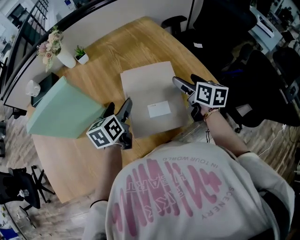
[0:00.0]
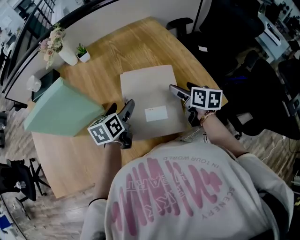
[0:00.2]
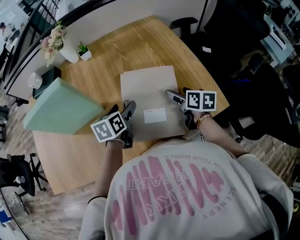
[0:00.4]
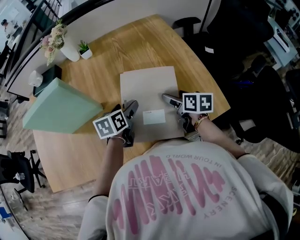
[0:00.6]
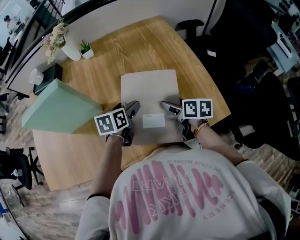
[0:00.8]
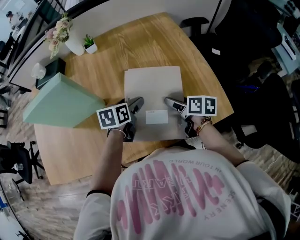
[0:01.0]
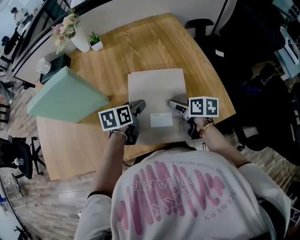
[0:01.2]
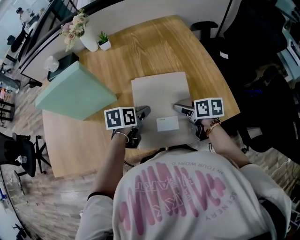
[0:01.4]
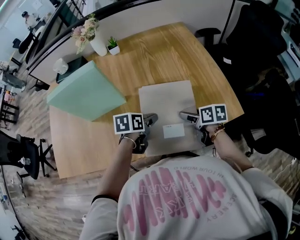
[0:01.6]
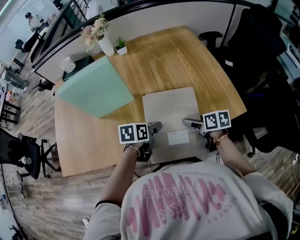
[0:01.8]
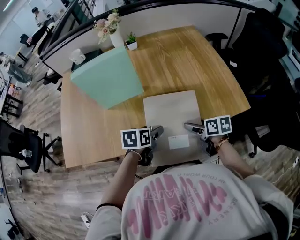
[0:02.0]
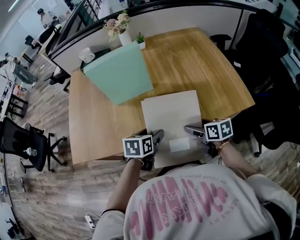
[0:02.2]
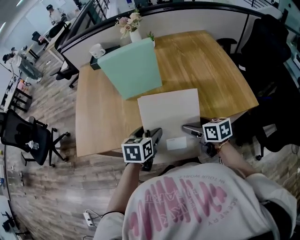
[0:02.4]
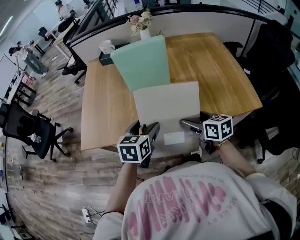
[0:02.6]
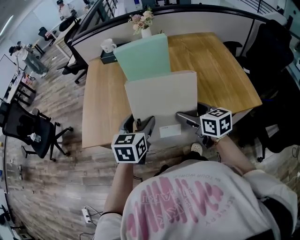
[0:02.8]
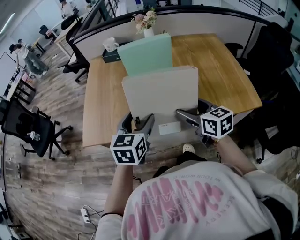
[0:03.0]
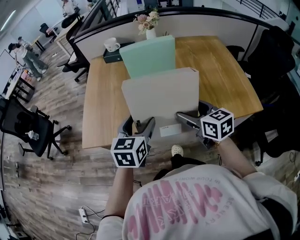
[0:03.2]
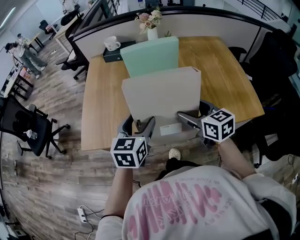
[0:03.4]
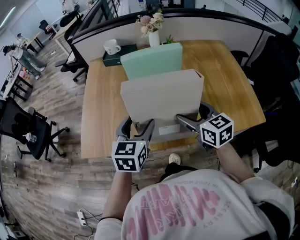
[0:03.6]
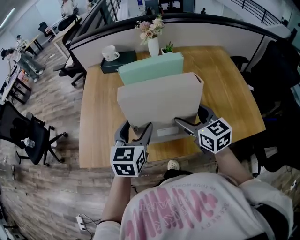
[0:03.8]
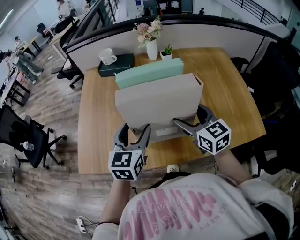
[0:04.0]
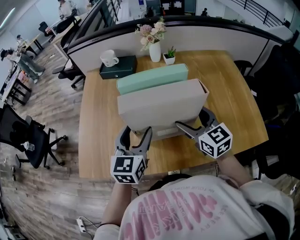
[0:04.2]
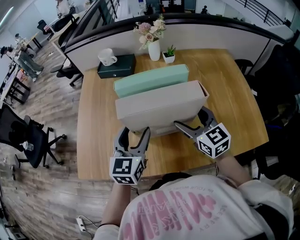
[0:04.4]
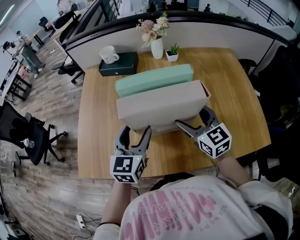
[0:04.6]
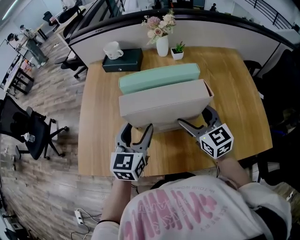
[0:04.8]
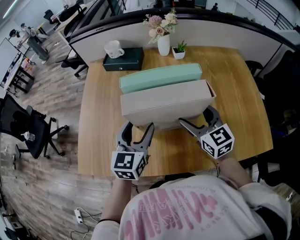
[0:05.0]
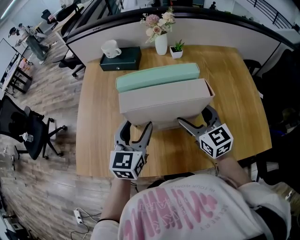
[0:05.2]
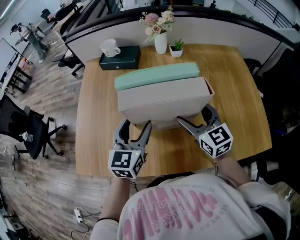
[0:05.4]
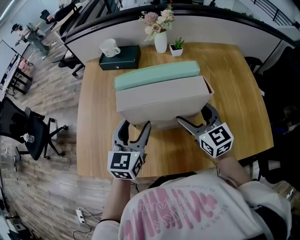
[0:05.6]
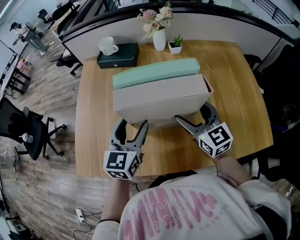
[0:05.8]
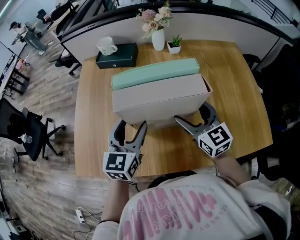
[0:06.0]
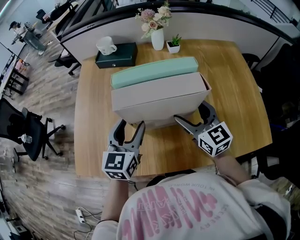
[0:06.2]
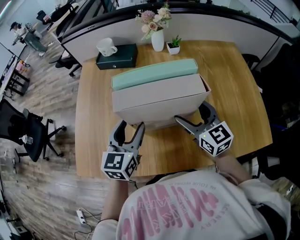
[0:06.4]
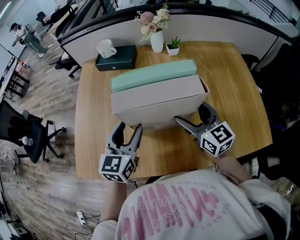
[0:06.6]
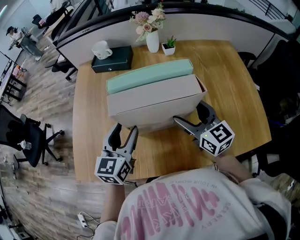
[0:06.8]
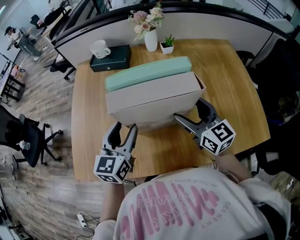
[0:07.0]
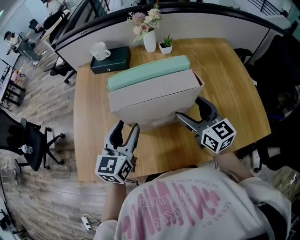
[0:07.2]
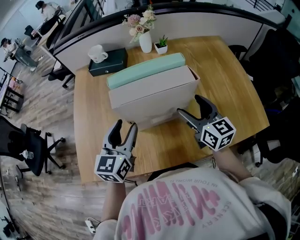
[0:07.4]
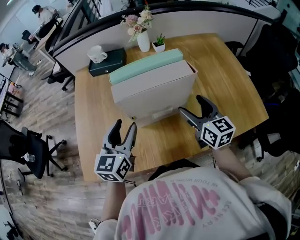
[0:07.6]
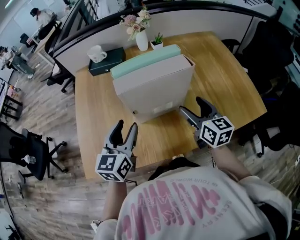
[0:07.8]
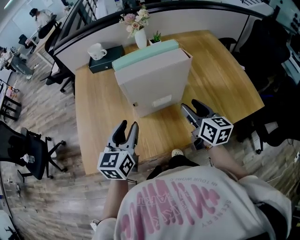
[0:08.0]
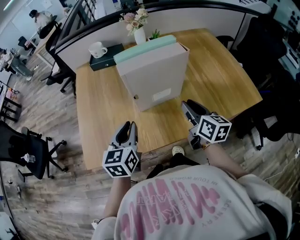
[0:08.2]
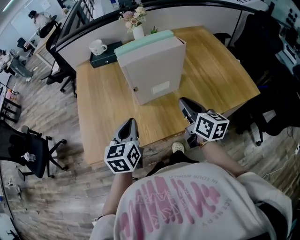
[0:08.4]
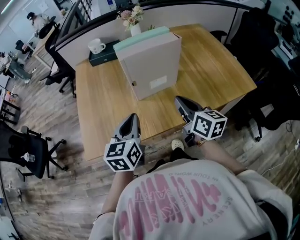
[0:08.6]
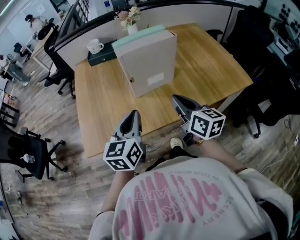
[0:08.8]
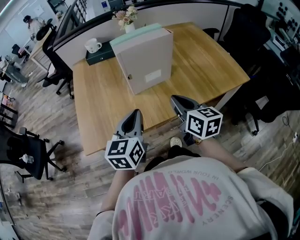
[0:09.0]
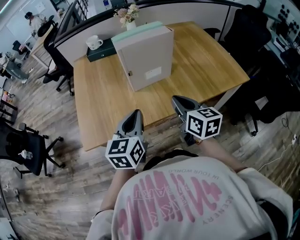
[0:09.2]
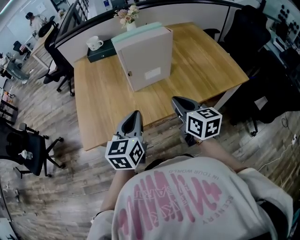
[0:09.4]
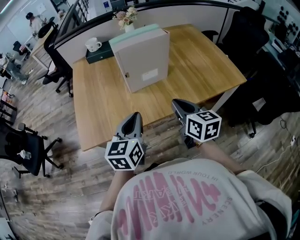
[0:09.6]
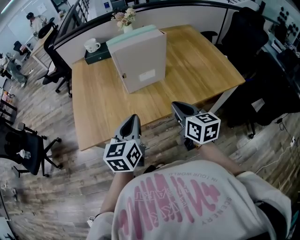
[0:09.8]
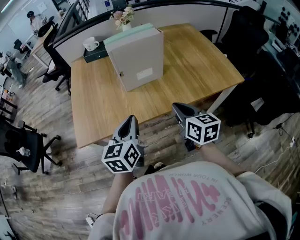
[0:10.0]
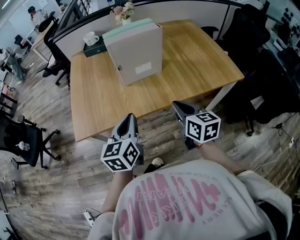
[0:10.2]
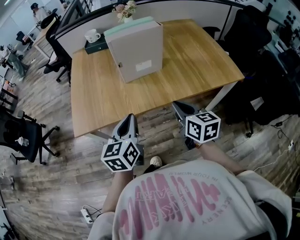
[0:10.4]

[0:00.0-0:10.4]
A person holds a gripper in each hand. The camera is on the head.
0:00.0 to 0:01.4: The left gripper shifts approximately 10 cm downward, and turns by about 20 degrees, while the right gripper moves downward and to the left, some 10 cm, and changes its angle by roughly 30 degrees.
0:01.4 to 0:03.0: The left gripper heads to the left, backward and upward, covering roughly 40 cm, and swivels roughly 40 degrees, while the right gripper goes approximately 35 cm to the left, upward and backward, and changes its angle by roughly 40 degrees.
0:03.0 to 0:04.4: Both grippers move forward, approximately 15 cm.
0:04.4 to 0:07.4: The grippers stay close to where they were, moving slightly.
0:07.4 to 0:09.0: The two grippers go about 20 cm backward. The left gripper closes its fingers. The right gripper closes its fingers.
0:09.0 to 0:10.4: The left gripper is displaced backward by approximately 10 cm. The right gripper moves backward and to the right, some 10 cm.

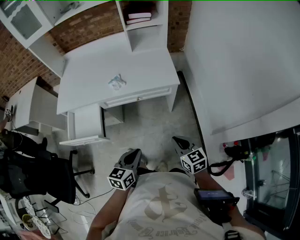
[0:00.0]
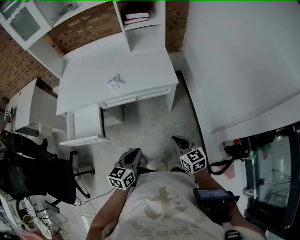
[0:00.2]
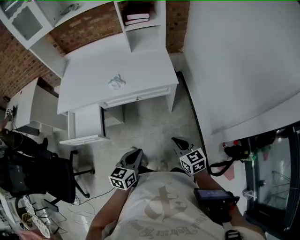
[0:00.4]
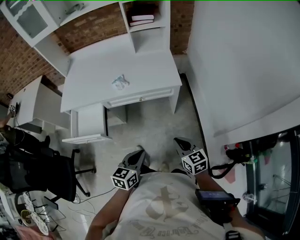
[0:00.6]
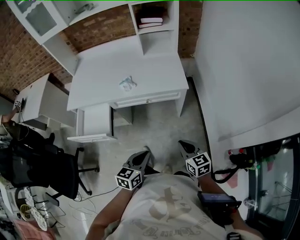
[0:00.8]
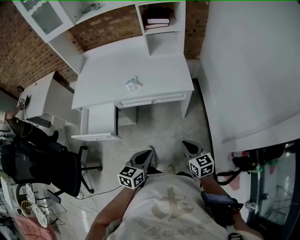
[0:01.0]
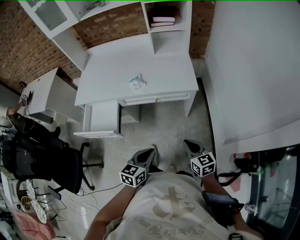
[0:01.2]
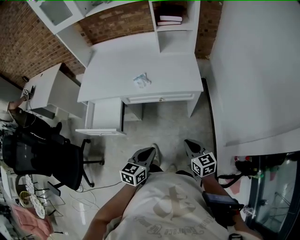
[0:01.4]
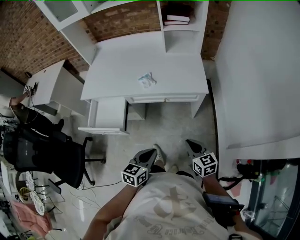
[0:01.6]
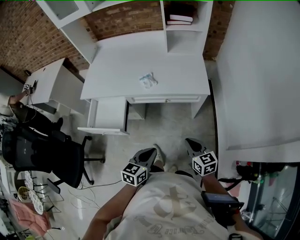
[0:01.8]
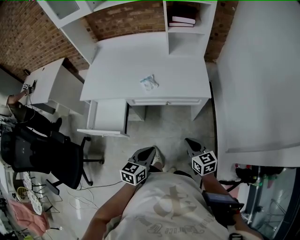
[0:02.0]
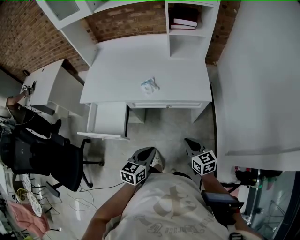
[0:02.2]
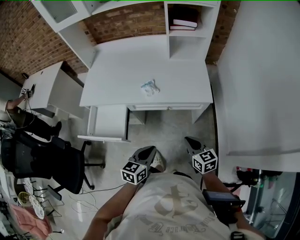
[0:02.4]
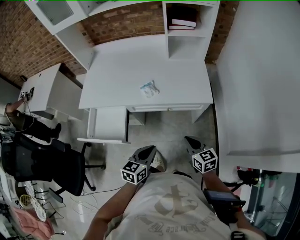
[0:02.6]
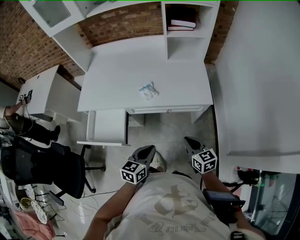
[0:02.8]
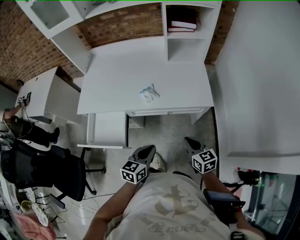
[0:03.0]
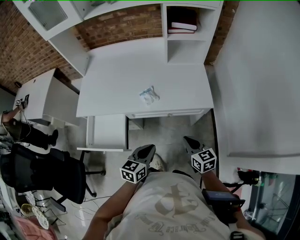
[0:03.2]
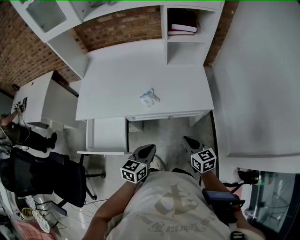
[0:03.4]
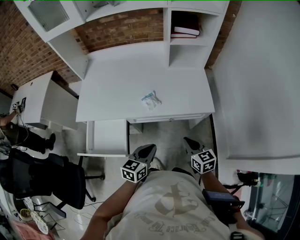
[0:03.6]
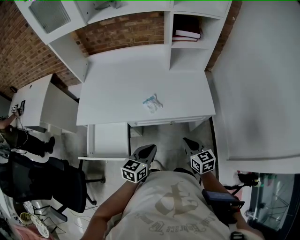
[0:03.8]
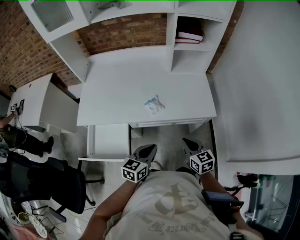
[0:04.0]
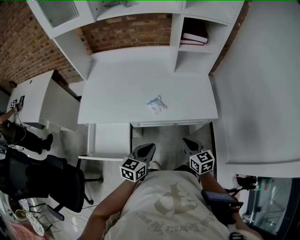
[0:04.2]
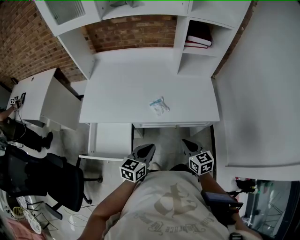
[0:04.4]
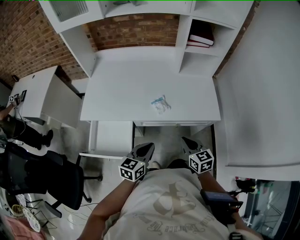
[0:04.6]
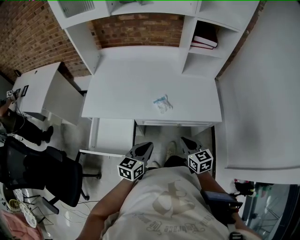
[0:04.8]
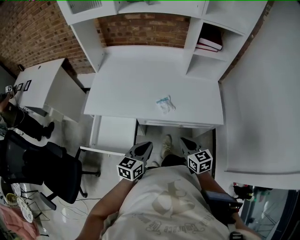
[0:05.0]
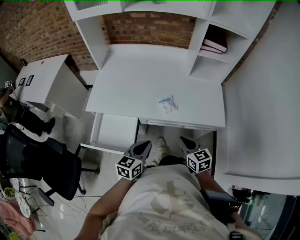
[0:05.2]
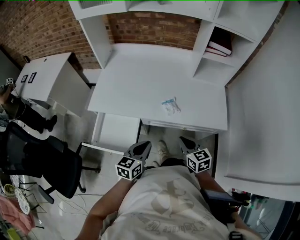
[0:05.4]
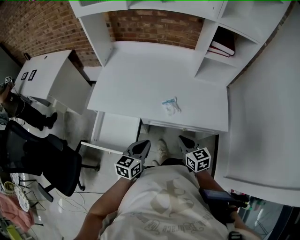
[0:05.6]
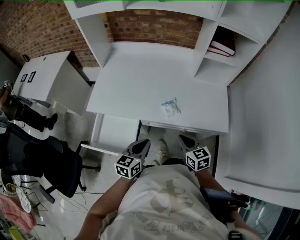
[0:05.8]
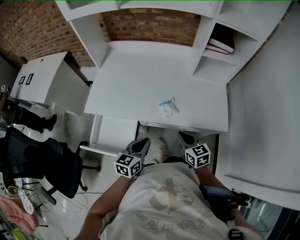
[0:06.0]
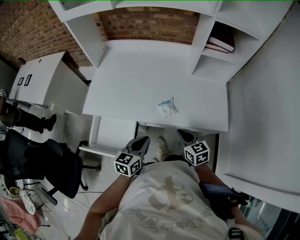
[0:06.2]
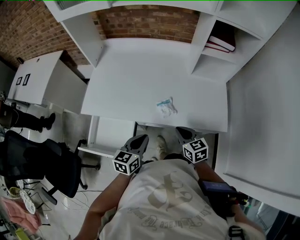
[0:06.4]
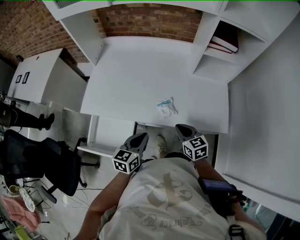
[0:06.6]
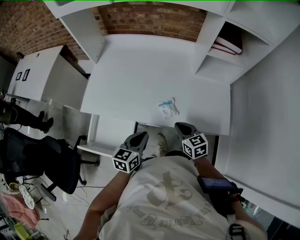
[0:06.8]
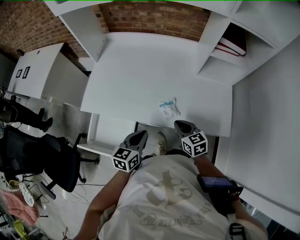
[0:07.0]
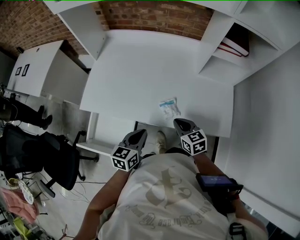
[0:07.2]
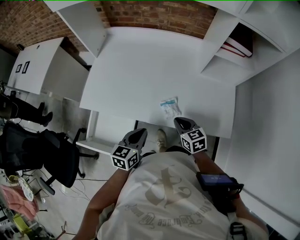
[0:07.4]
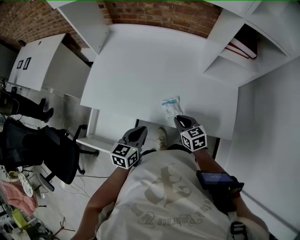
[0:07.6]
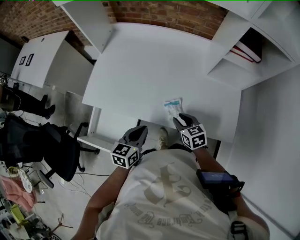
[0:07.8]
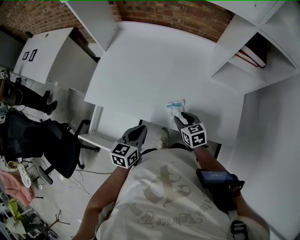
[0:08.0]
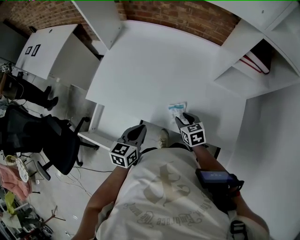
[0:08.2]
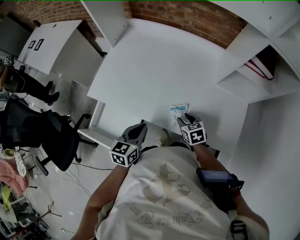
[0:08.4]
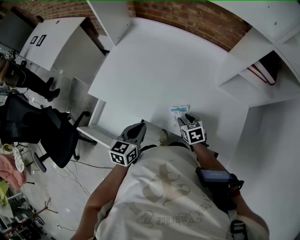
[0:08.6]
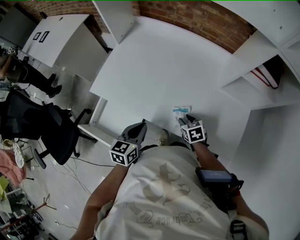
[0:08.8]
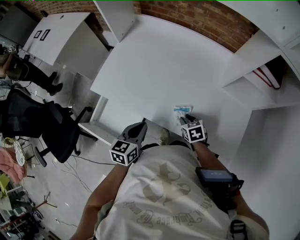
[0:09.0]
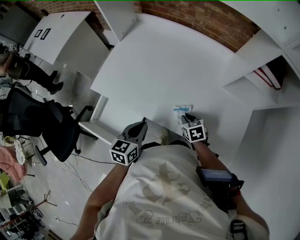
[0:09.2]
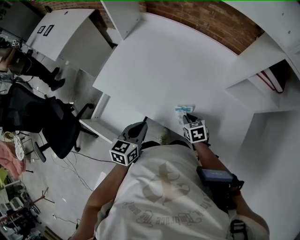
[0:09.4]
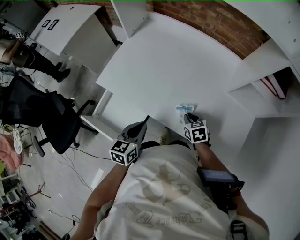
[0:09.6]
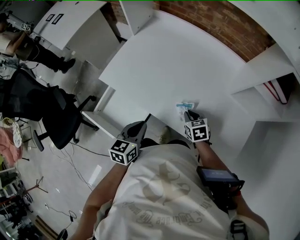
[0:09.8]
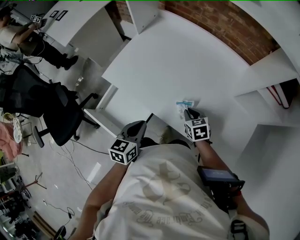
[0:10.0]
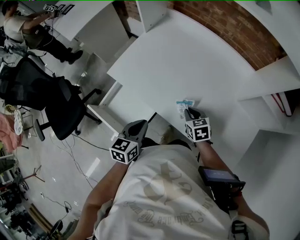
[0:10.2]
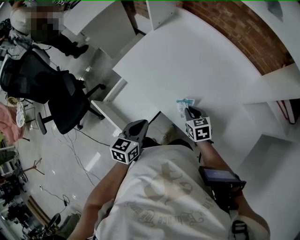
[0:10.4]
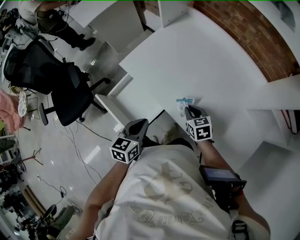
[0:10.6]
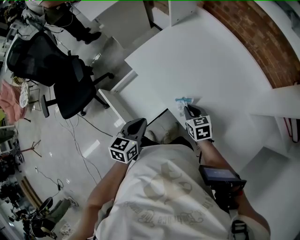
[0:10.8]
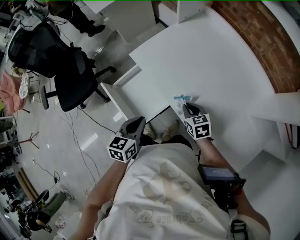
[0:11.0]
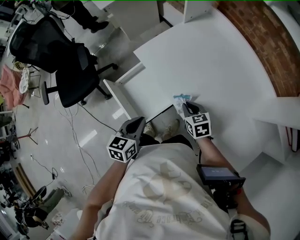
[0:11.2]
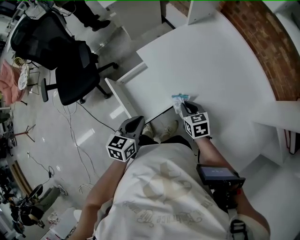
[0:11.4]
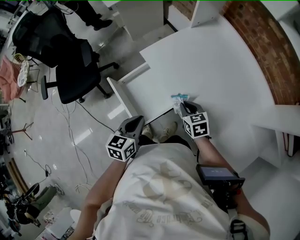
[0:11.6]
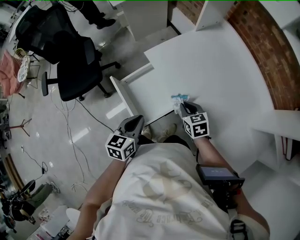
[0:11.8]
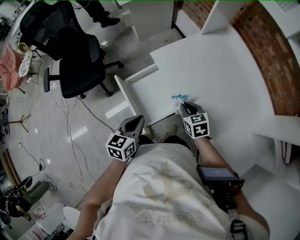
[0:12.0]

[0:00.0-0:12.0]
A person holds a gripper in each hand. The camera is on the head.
0:00.0 to 0:01.6: There are only small adjustments of the grippers.
0:01.6 to 0:03.0: The grippers both shift forward by roughly 15 cm.
0:03.0 to 0:04.4: Both grippers move to the left and forward, about 10 cm.
0:04.4 to 0:06.0: The left gripper changes place by about 5 cm; the right gripper goes about 10 cm forward and to the left.
0:06.0 to 0:07.6: The right gripper is displaced forward and downward by approximately 15 cm. Meanwhile the left gripper is displaced forward by about 10 cm.
0:07.6 to 0:09.0: The right gripper shifts about 10 cm downward and forward, swivels approximately 20 degrees, and opens its fingers.
0:09.0 to 0:10.4: The right gripper is displaced to the left and forward by about 10 cm, and closes; the left gripper moves to the left, some 5 cm.
0:10.4 to 0:12.0: Both grippers move to the left, approximately 15 cm. The right gripper turns by approximately 20 degrees. Meanwhile the left gripper rotates approximately 20 degrees.

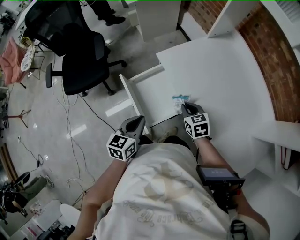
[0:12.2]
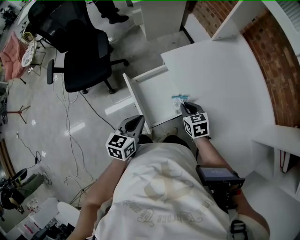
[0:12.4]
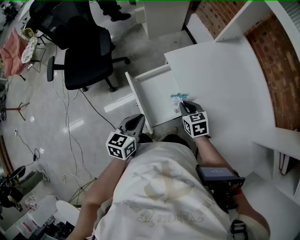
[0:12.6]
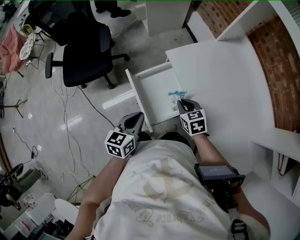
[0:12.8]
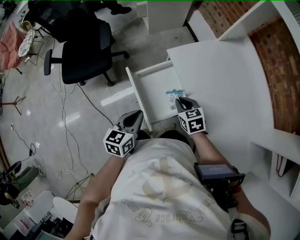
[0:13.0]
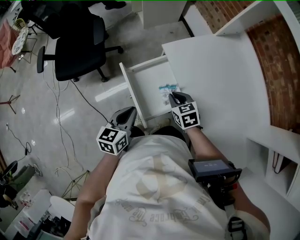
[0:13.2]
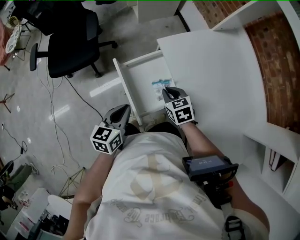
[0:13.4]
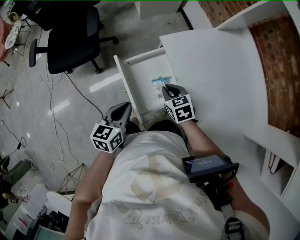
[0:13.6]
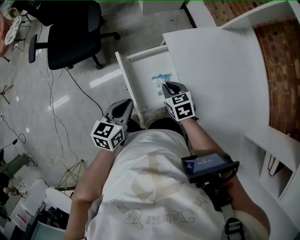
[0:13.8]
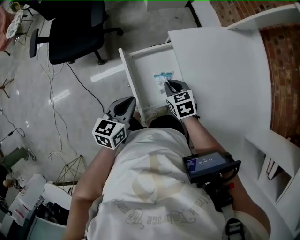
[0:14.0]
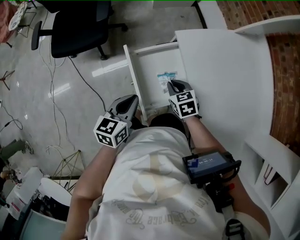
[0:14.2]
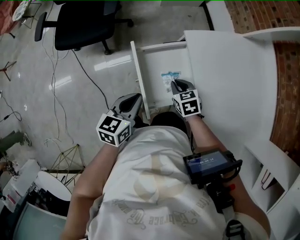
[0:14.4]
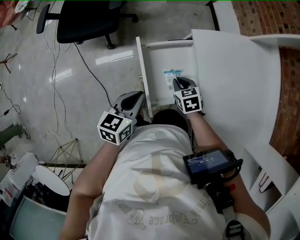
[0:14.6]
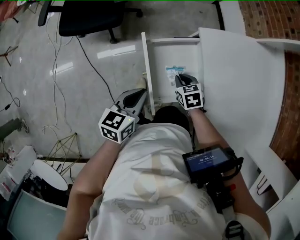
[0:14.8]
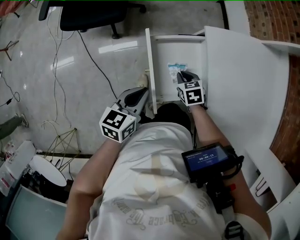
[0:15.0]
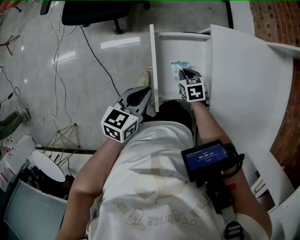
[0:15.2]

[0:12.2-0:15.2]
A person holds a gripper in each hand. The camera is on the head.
0:12.2 to 0:13.8: The left gripper moves to the left, about 5 cm; the right gripper shifts some 10 cm to the left and forward.
0:13.8 to 0:15.2: The right gripper goes about 10 cm downward.
